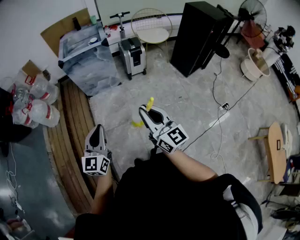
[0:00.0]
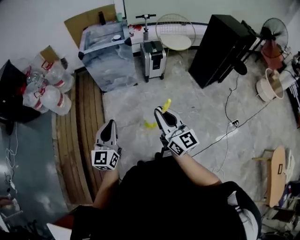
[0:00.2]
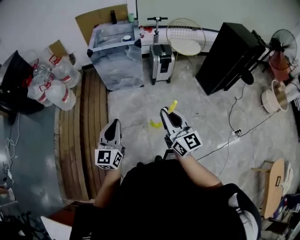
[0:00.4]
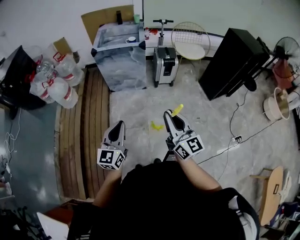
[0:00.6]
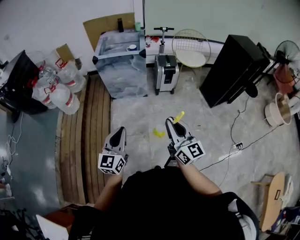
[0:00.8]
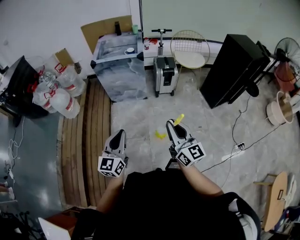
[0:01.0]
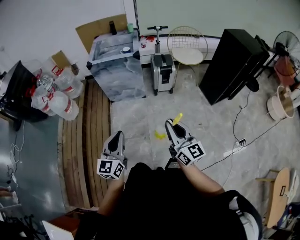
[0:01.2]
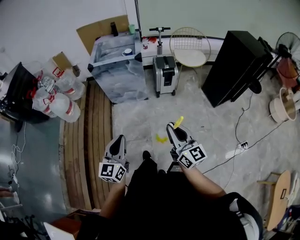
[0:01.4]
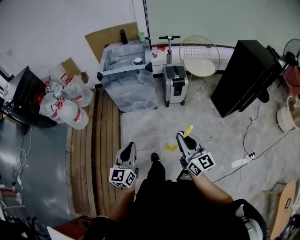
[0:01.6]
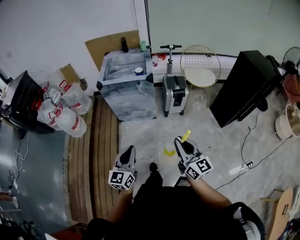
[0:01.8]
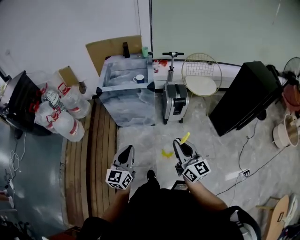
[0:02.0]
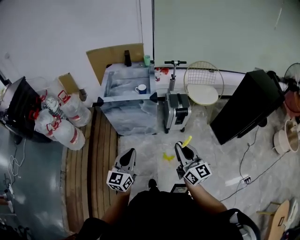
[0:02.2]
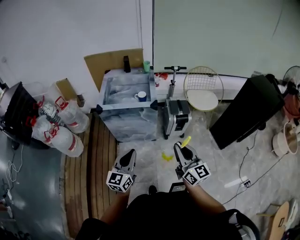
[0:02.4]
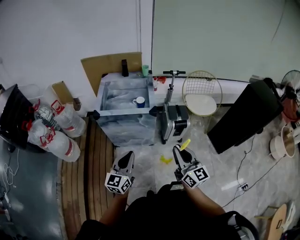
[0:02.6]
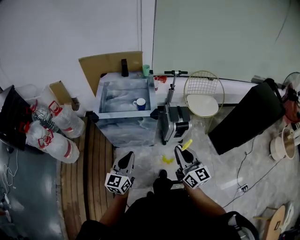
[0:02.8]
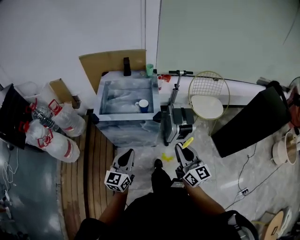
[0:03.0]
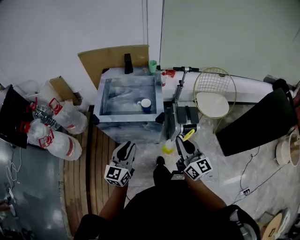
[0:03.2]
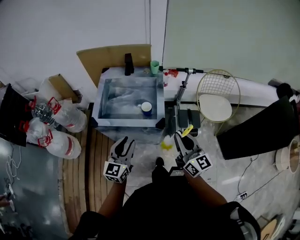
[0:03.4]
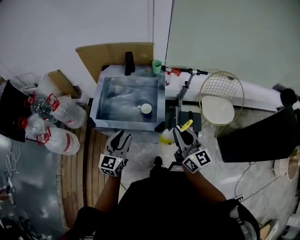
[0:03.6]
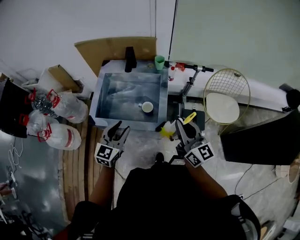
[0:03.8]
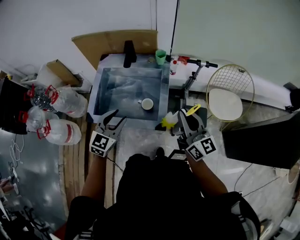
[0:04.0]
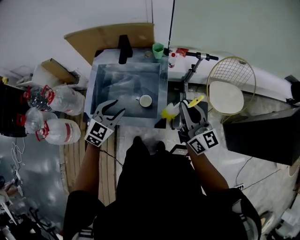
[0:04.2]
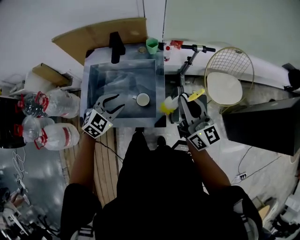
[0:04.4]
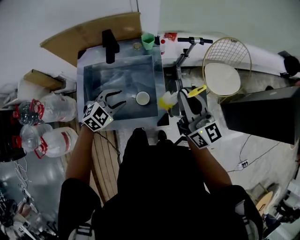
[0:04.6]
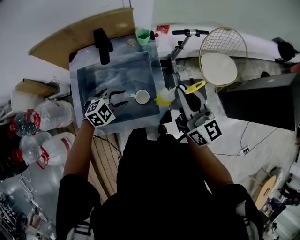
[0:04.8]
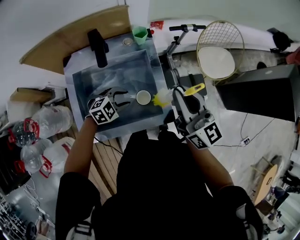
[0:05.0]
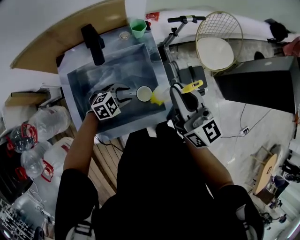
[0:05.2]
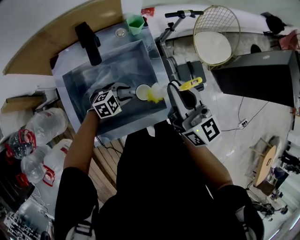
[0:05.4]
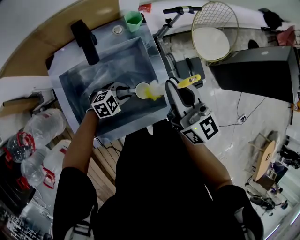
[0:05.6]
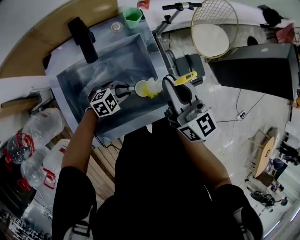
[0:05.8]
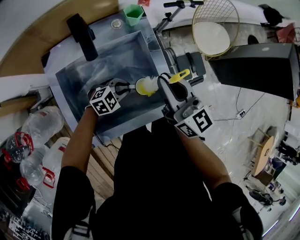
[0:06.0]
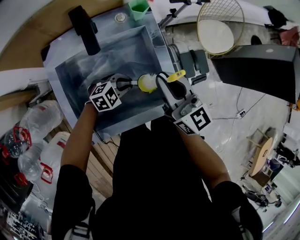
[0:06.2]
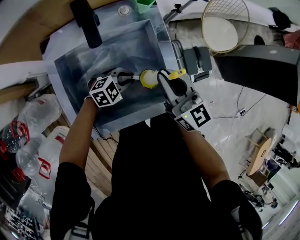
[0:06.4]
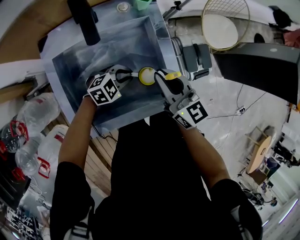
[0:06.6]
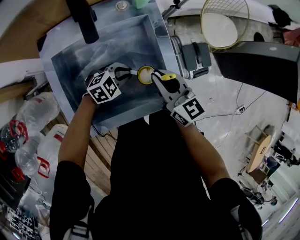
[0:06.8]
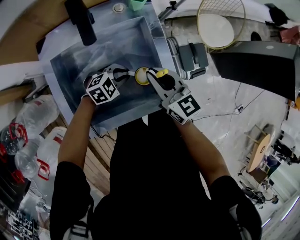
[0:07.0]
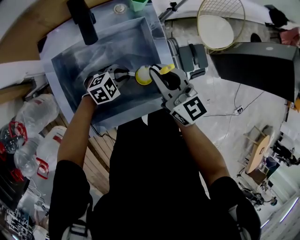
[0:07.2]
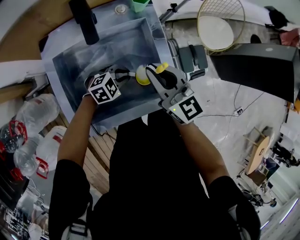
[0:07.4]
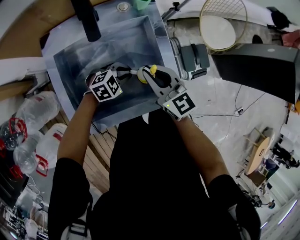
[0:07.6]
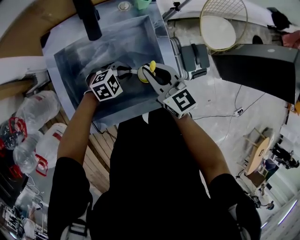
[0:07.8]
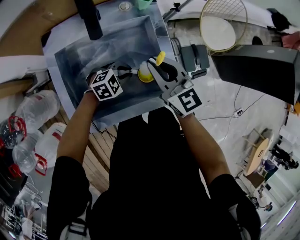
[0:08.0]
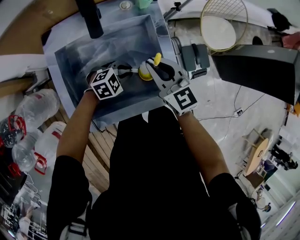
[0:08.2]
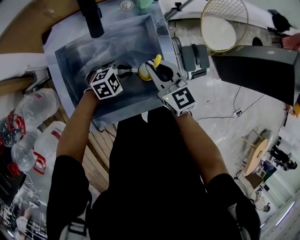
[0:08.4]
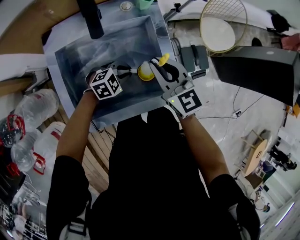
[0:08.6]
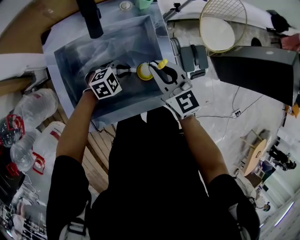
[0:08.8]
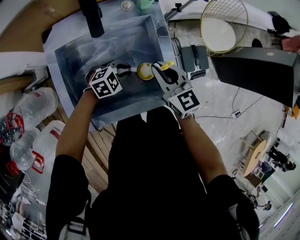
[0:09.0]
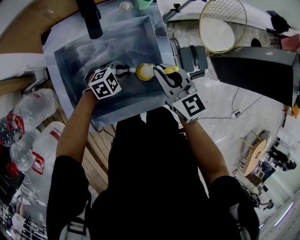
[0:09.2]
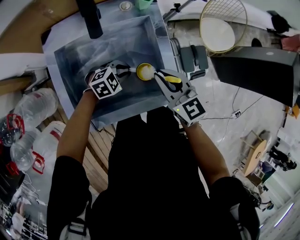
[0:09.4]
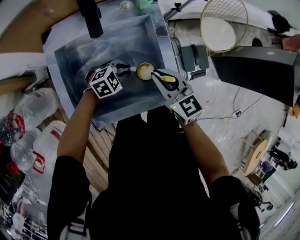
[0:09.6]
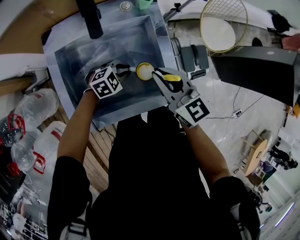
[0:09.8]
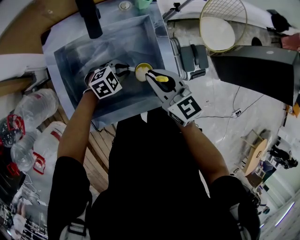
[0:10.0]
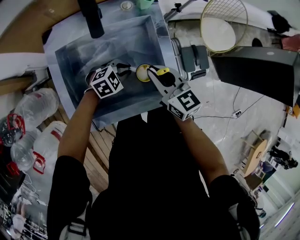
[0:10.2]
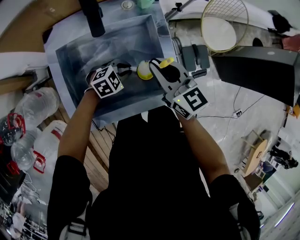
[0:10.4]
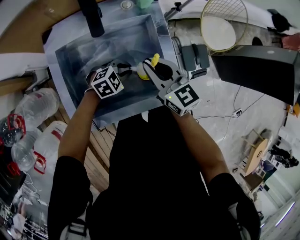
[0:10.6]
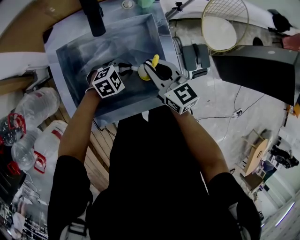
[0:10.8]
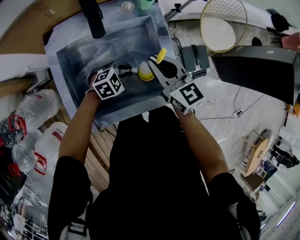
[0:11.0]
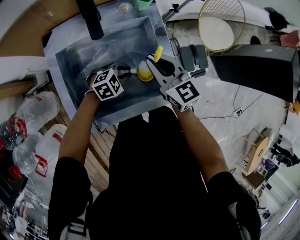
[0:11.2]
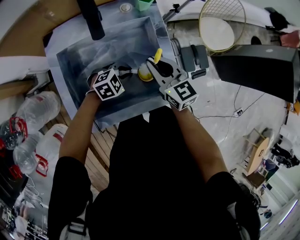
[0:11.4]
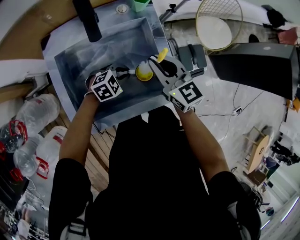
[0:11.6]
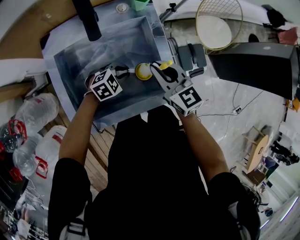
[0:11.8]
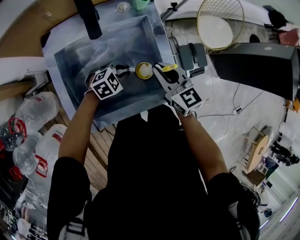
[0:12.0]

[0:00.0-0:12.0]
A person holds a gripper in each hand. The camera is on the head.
0:00.0 to 0:01.6: Both grippers move forward and to the right, roughly 15 cm.
0:01.6 to 0:03.0: The two grippers travel together, forward, roughly 40 cm.
0:03.0 to 0:04.4: The grippers both shift forward by about 40 cm. The left gripper points its fingers roughly 40 degrees further downward, and opens its fingers.
0:04.4 to 0:06.0: The right gripper ends up roughly 15 cm from where it was. Meanwhile the left gripper shifts approximately 20 cm downward, turns by roughly 40 degrees, and closes its fingers.
0:06.0 to 0:07.6: The right gripper goes up and down, about 10 cm each way, reversing 2 times, and changes its angle by some 20 degrees.
0:07.6 to 0:09.0: The grippers stay close to where they were, moving slightly.
0:09.0 to 0:10.4: The right gripper moves up and down over some 5 cm, changing direction 2 times.
0:10.4 to 0:12.0: The right gripper moves about 5 cm.

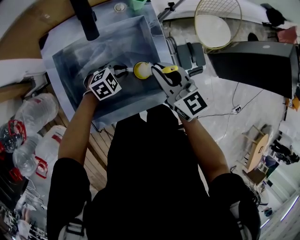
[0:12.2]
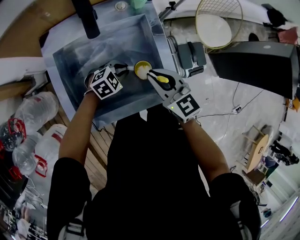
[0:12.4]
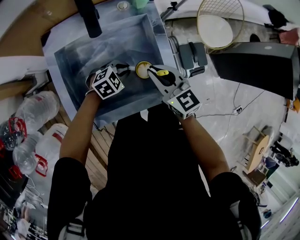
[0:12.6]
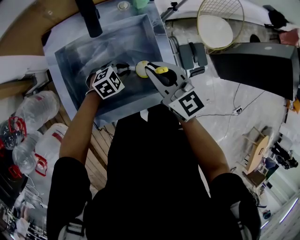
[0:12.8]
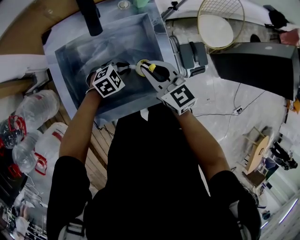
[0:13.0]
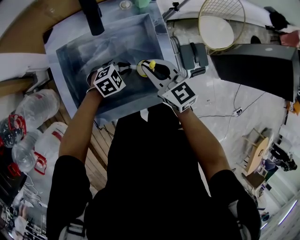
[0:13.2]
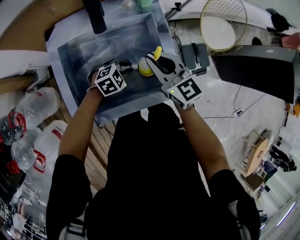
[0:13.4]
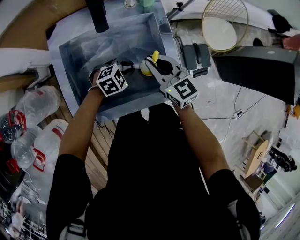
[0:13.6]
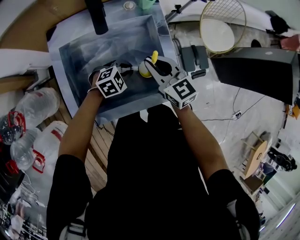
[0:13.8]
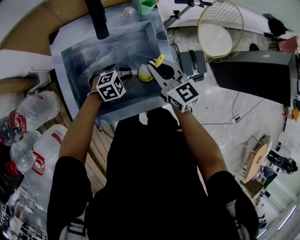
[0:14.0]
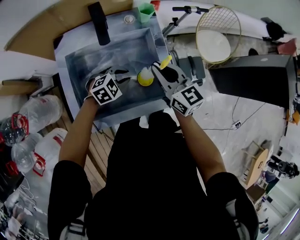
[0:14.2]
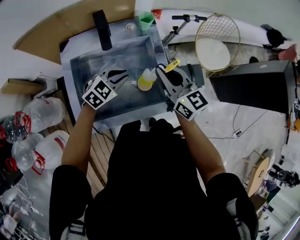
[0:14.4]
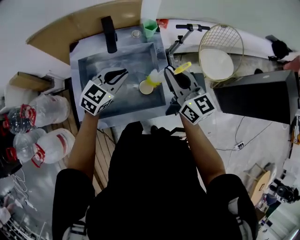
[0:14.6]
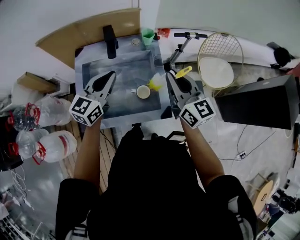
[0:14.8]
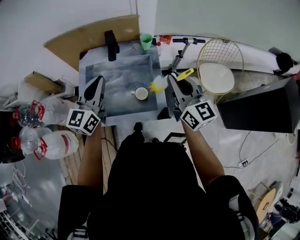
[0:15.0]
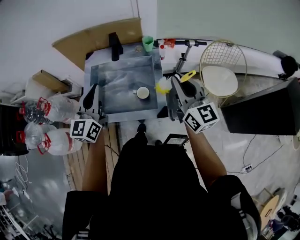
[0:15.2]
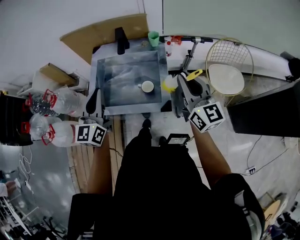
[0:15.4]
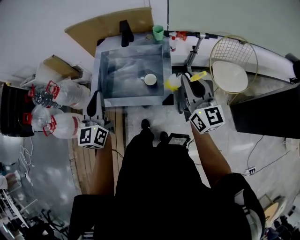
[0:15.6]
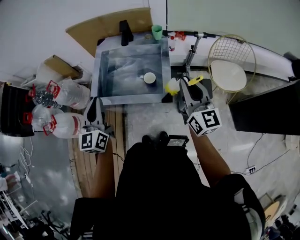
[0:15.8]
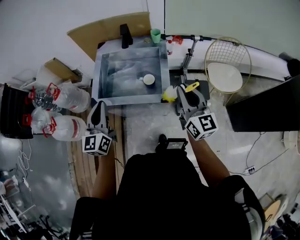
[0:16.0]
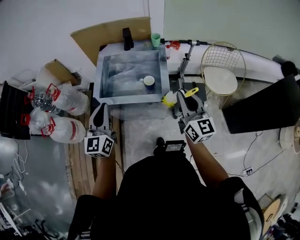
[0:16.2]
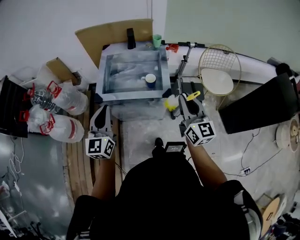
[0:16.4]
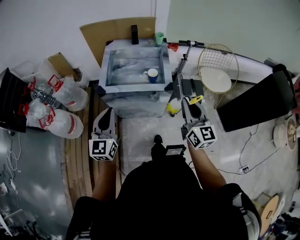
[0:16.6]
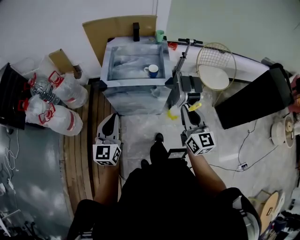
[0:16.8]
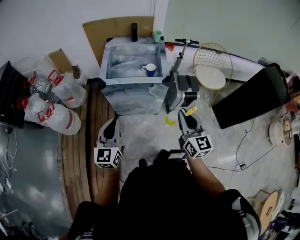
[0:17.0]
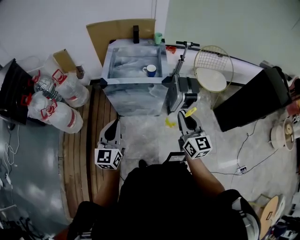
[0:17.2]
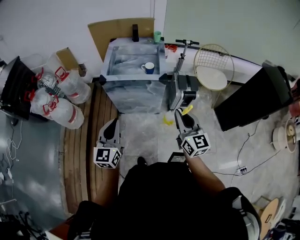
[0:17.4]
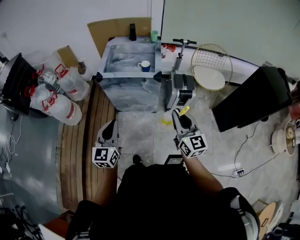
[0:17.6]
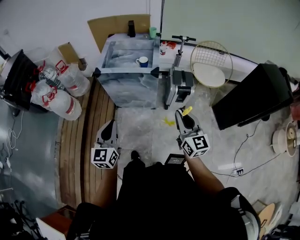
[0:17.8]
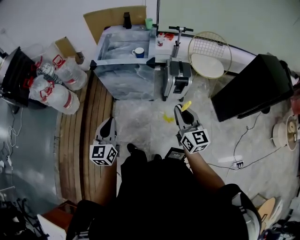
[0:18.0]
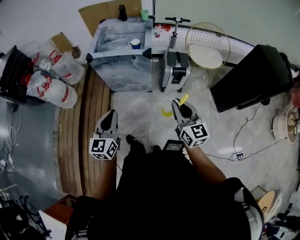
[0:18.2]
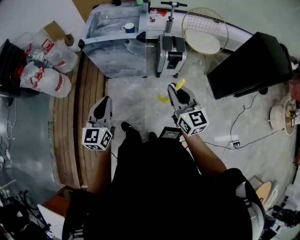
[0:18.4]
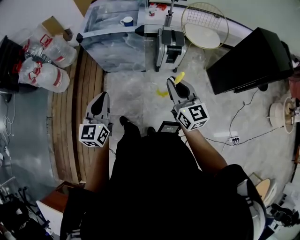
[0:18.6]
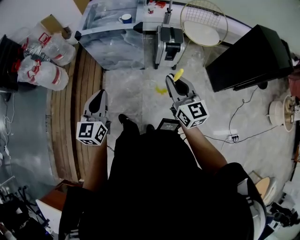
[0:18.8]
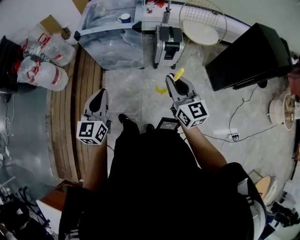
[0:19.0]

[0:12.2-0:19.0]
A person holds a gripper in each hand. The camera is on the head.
0:12.2 to 0:13.6: The right gripper ends up some 5 cm from where it was.
0:13.6 to 0:15.0: The right gripper heads upward, covering about 20 cm, and turns by about 20 degrees; the left gripper heads upward, covering some 35 cm, and tips its fingers upward by roughly 50 degrees.
0:15.0 to 0:16.2: The two grippers go some 20 cm backward.
0:16.2 to 0:17.6: Both grippers move backward, about 30 cm.
0:17.6 to 0:19.0: Both grippers move backward and to the right, about 15 cm.

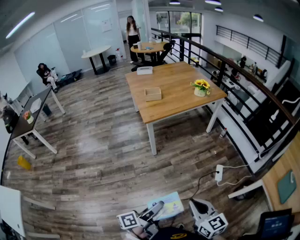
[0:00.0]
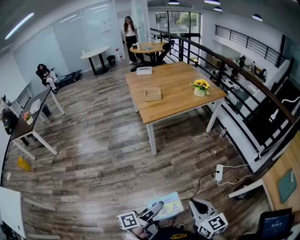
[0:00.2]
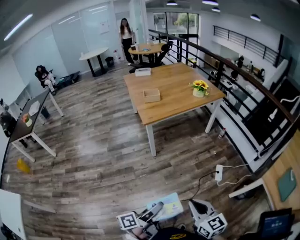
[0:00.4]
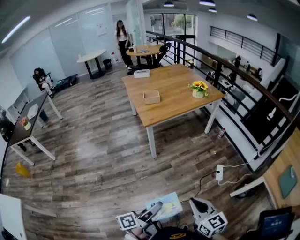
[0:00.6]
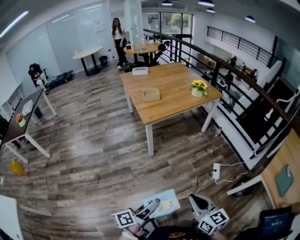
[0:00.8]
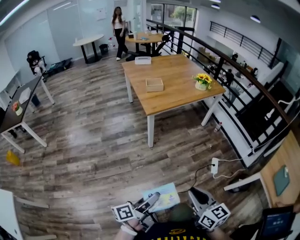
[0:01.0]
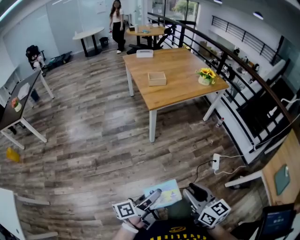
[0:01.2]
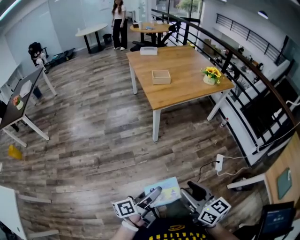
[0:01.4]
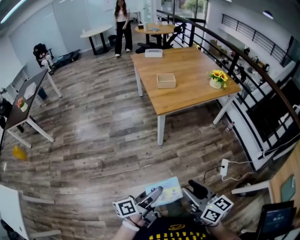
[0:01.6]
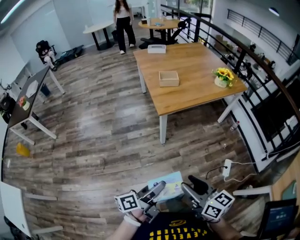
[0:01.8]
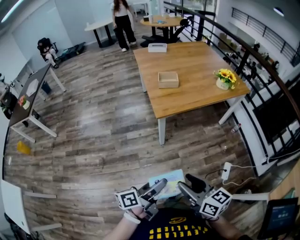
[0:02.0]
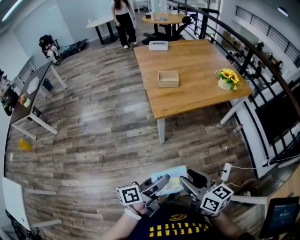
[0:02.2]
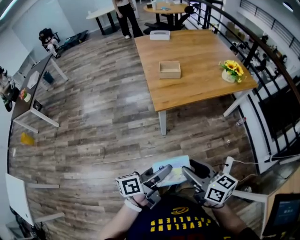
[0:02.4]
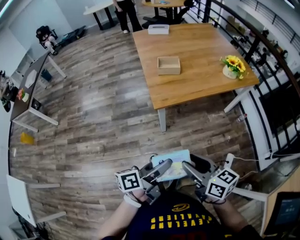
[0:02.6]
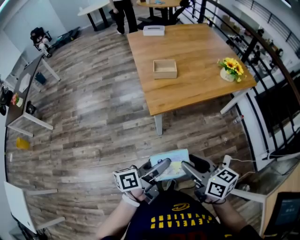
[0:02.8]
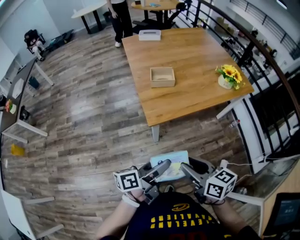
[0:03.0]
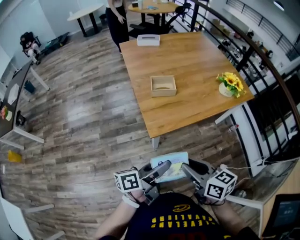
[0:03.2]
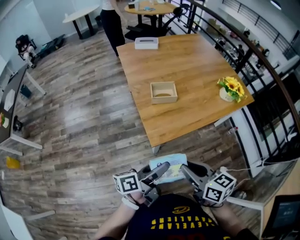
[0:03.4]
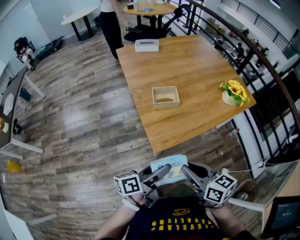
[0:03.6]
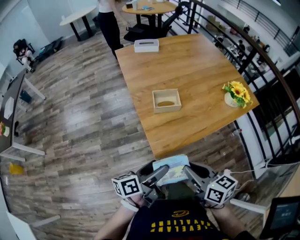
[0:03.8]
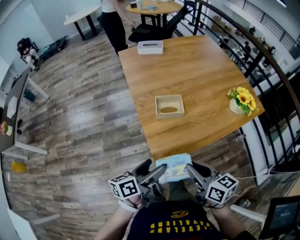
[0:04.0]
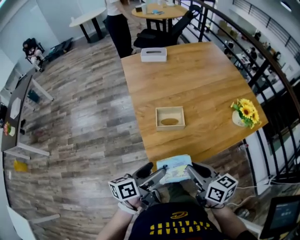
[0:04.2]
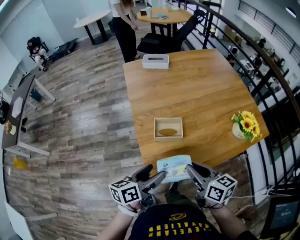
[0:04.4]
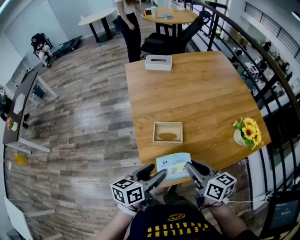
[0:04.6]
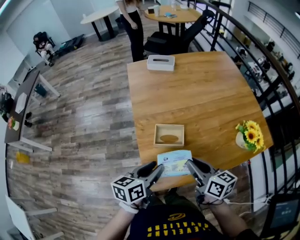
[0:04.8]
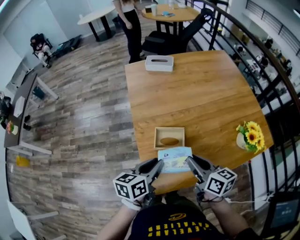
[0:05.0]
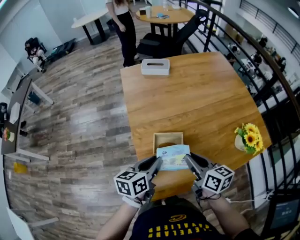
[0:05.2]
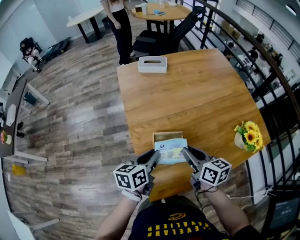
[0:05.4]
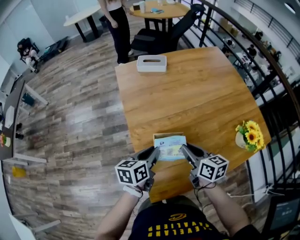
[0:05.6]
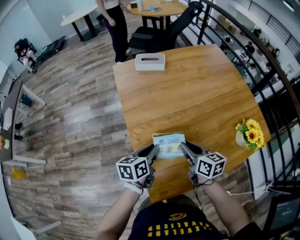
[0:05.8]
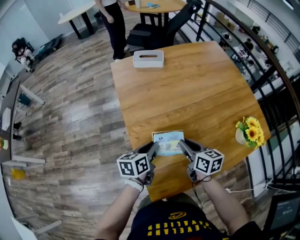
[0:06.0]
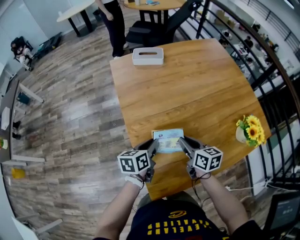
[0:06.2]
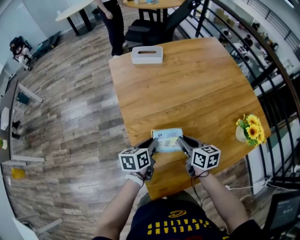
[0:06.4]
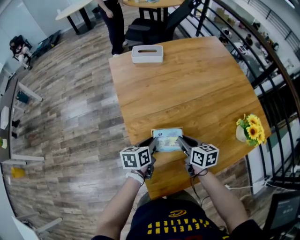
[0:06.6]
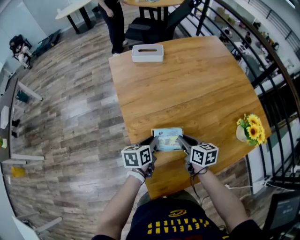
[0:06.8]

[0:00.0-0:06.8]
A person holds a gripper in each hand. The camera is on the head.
0:00.0 to 0:01.4: The two grippers go some 15 cm to the left and forward. The right gripper opens up.
0:01.4 to 0:02.8: Both grippers travel together forward, roughly 30 cm.
0:02.8 to 0:04.0: The two grippers go approximately 25 cm forward. The left gripper opens. Meanwhile the right gripper closes up.
0:04.0 to 0:05.4: The two grippers go roughly 25 cm forward. The left gripper turns by approximately 20 degrees, and closes its fingers.
0:05.4 to 0:06.8: The two grippers go approximately 15 cm downward and forward.
